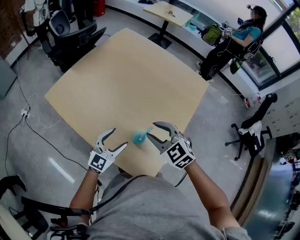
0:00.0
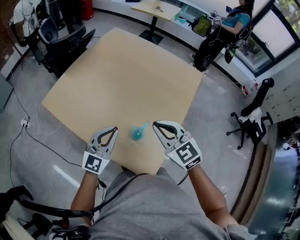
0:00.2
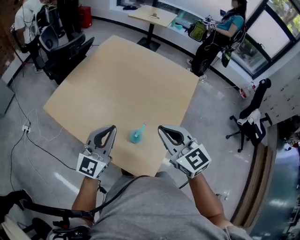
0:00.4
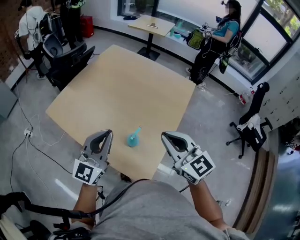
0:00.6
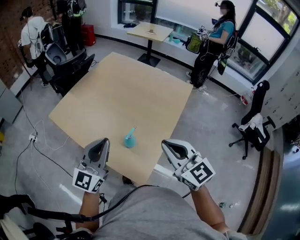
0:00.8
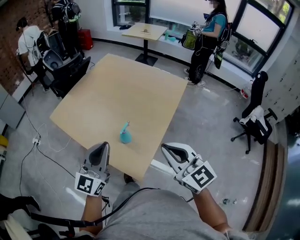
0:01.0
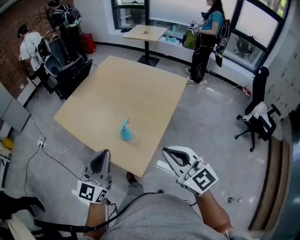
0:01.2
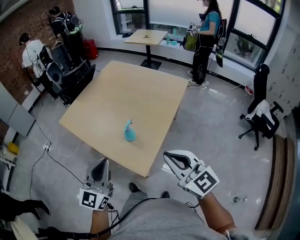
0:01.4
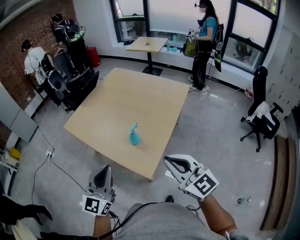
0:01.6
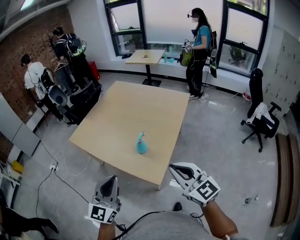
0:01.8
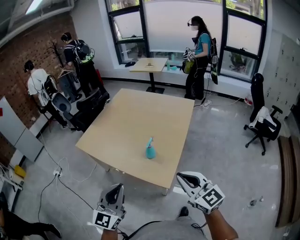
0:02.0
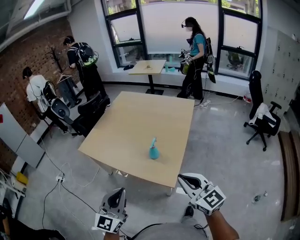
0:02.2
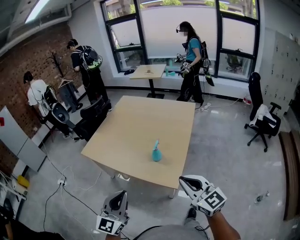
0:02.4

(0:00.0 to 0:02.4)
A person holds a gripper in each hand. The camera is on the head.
0:00.0 - 0:01.2: The right gripper heads backward, to the right and upward, covering approximately 35 cm, angles its fingers upward, by roughly 40 degrees, and closes. Meanwhile the left gripper heads backward, upward and to the right, covering approximately 35 cm, and closes up.
0:01.2 - 0:02.4: The left gripper shifts approximately 25 cm to the left and backward. Meanwhile the right gripper moves backward and to the left, some 20 cm.

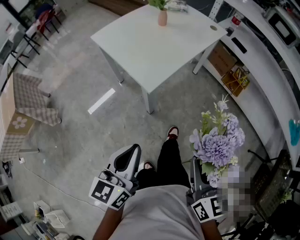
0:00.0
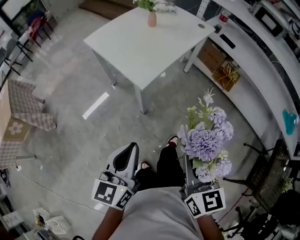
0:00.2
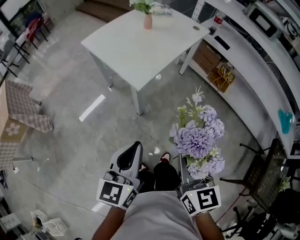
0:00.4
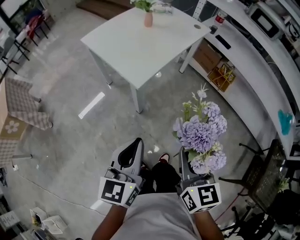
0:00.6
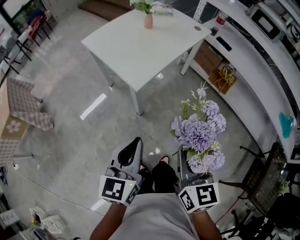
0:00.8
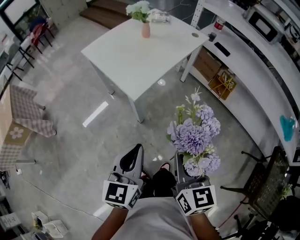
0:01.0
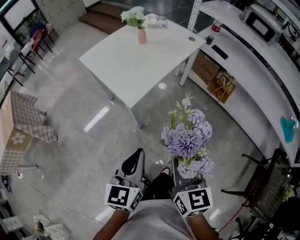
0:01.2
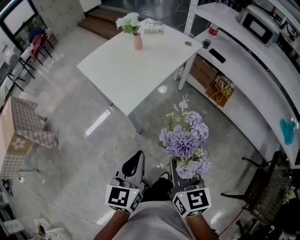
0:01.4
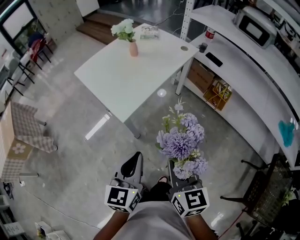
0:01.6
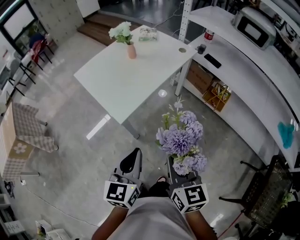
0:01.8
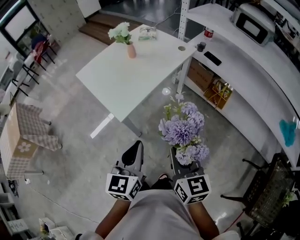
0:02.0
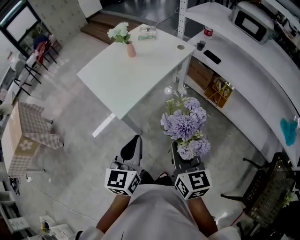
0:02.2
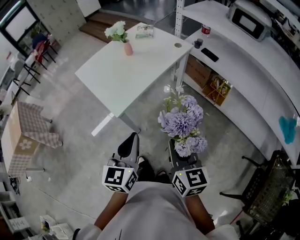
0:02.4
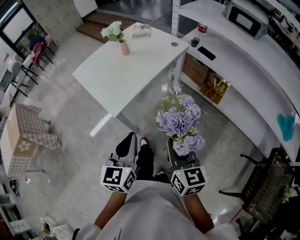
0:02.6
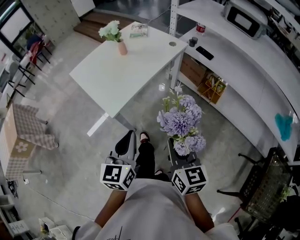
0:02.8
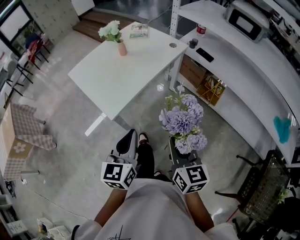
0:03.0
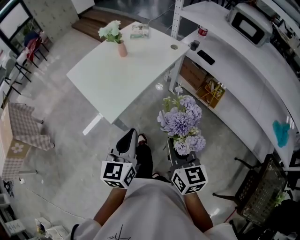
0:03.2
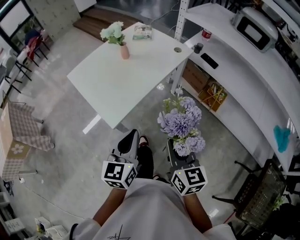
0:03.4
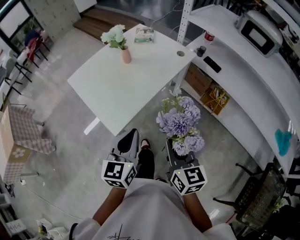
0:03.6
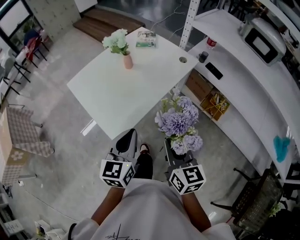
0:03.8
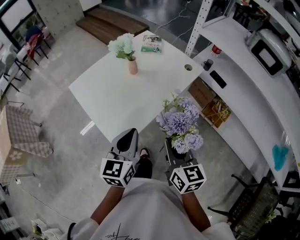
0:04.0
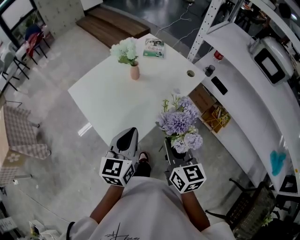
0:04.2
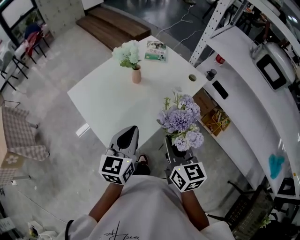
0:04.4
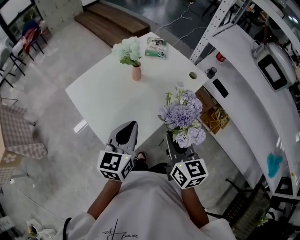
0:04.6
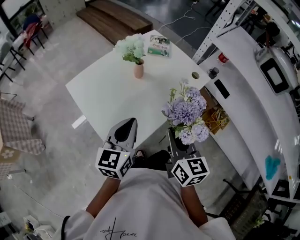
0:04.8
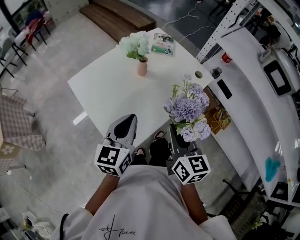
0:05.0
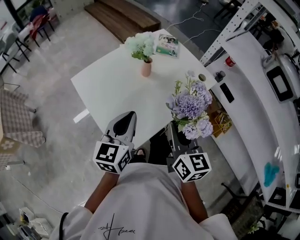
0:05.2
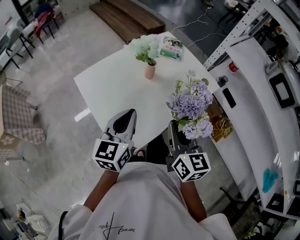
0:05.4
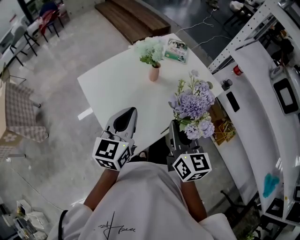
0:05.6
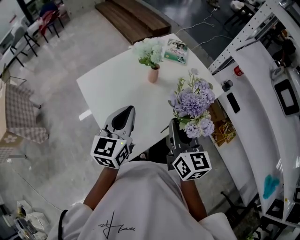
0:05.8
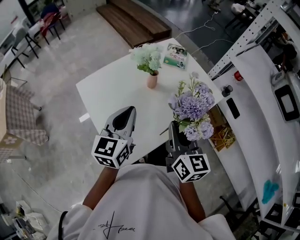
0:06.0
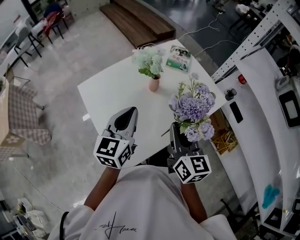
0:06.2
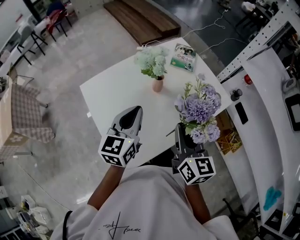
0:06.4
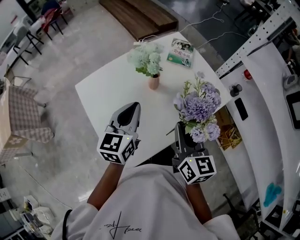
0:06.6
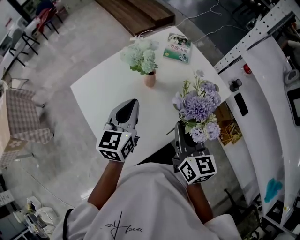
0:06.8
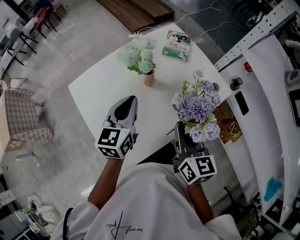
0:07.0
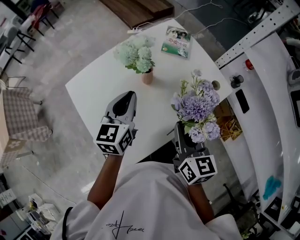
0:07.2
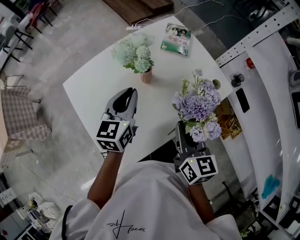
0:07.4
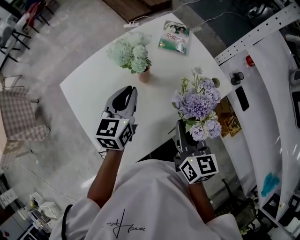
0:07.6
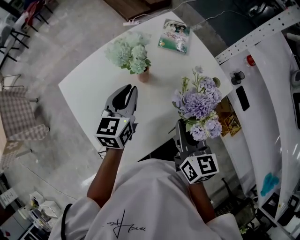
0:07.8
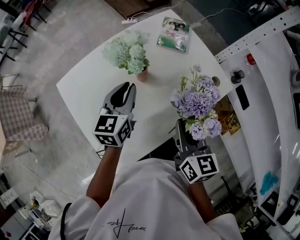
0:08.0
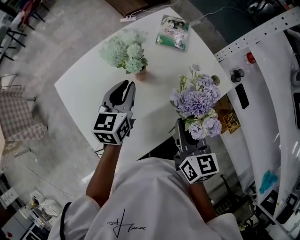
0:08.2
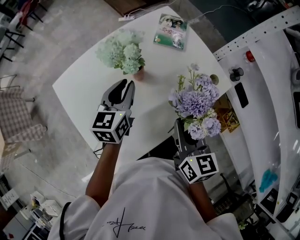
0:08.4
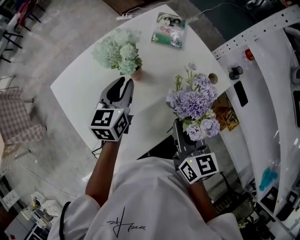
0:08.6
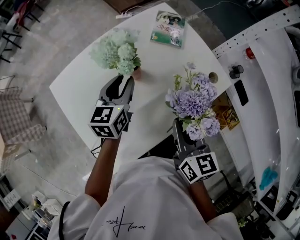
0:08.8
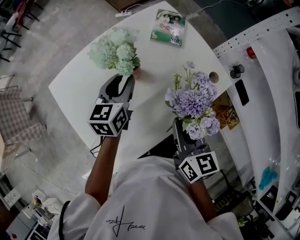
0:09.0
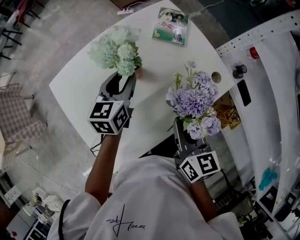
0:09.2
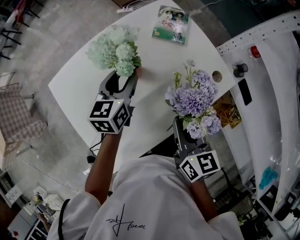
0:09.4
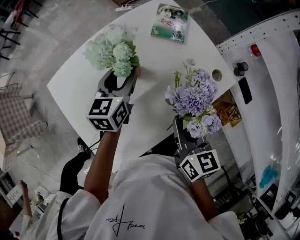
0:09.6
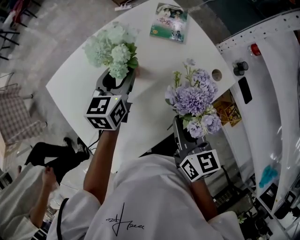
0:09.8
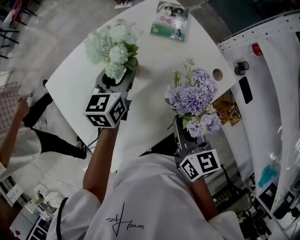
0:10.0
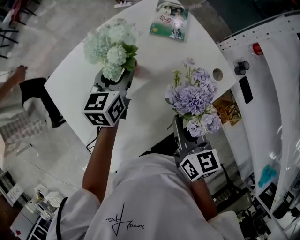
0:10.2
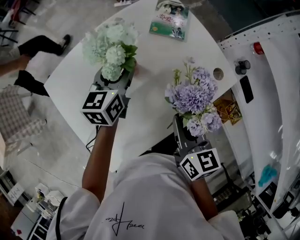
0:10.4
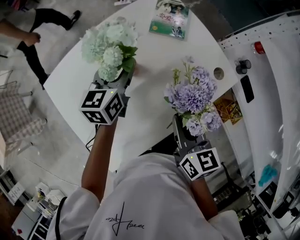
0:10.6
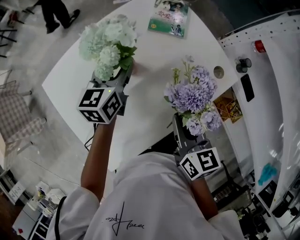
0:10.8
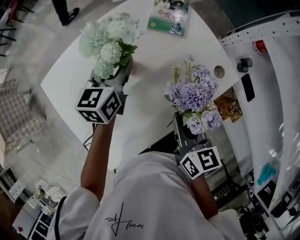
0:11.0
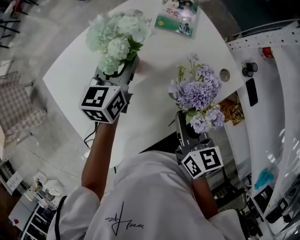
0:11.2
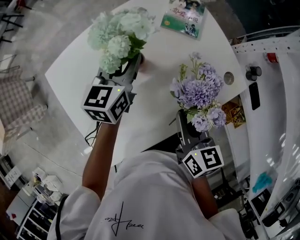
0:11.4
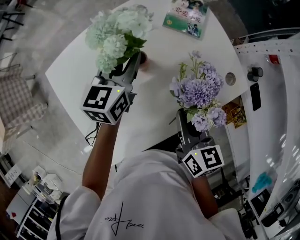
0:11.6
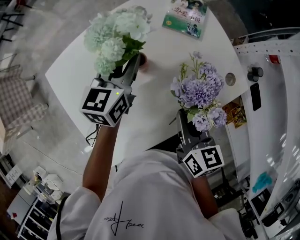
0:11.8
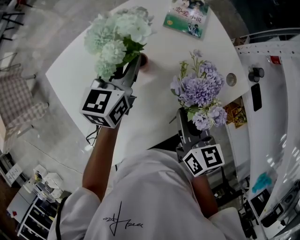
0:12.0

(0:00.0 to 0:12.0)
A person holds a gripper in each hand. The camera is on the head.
0:00.0 - 0:01.6: The left gripper heads to the right and forward, covering some 15 cm; the right gripper moves forward and to the right, about 10 cm.
0:01.6 - 0:03.0: Both grippers move to the right and forward, some 10 cm.
0:03.0 - 0:04.4: Both grippers move forward, about 25 cm.
0:04.4 - 0:06.0: The right gripper is displaced forward by roughly 10 cm, while the left gripper shifts about 15 cm forward and to the left.
0:06.0 - 0:07.6: The right gripper goes about 10 cm forward, downward and to the right, while the left gripper is displaced forward and downward by roughly 15 cm.
0:07.6 - 0:09.0: The left gripper moves forward, approximately 5 cm, and opens its fingers.
0:09.0 - 0:10.4: The grippers make only small movements.
0:10.4 - 0:12.0: The left gripper closes up.

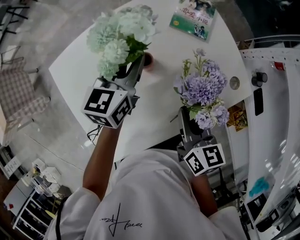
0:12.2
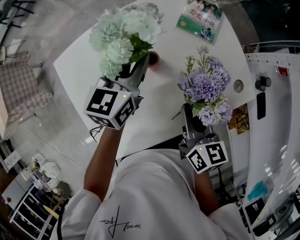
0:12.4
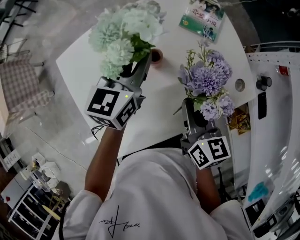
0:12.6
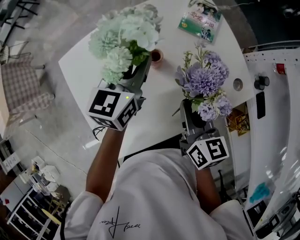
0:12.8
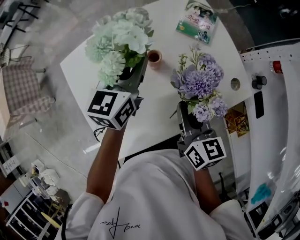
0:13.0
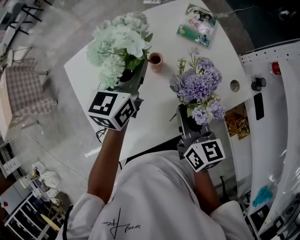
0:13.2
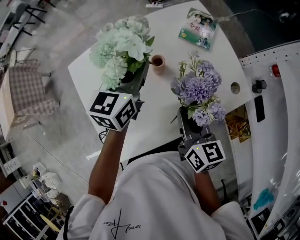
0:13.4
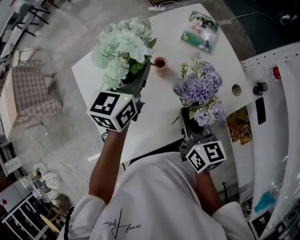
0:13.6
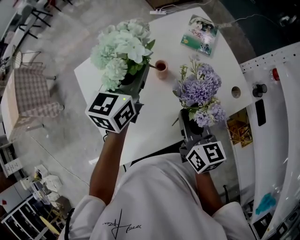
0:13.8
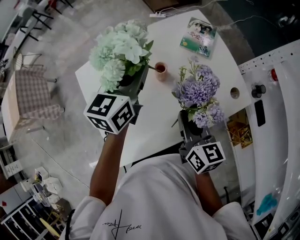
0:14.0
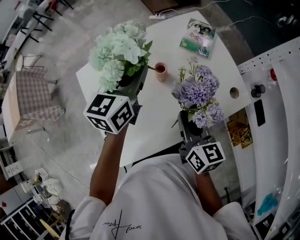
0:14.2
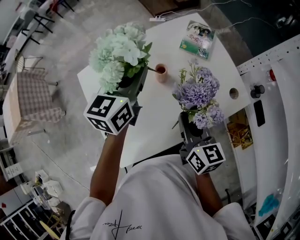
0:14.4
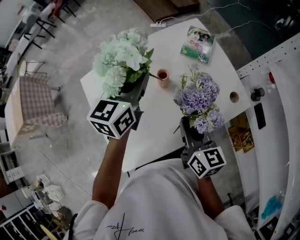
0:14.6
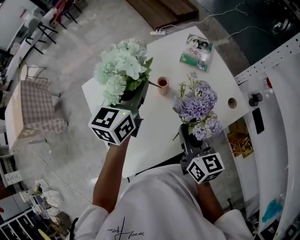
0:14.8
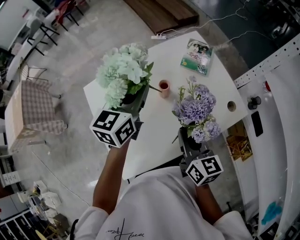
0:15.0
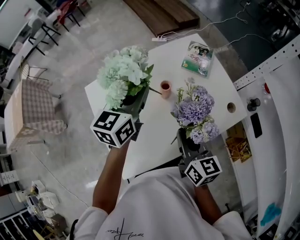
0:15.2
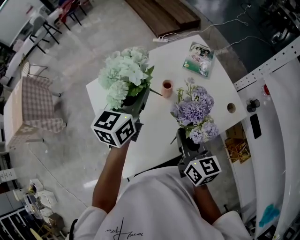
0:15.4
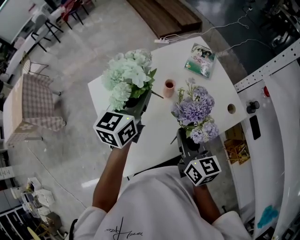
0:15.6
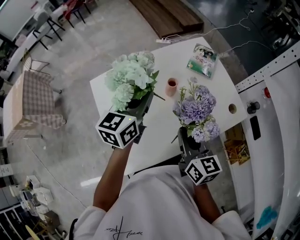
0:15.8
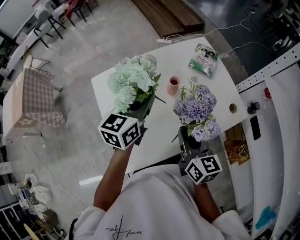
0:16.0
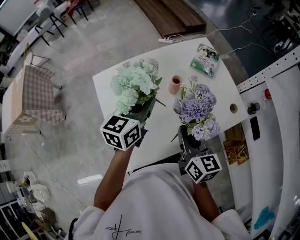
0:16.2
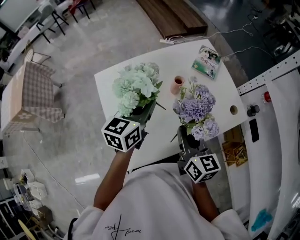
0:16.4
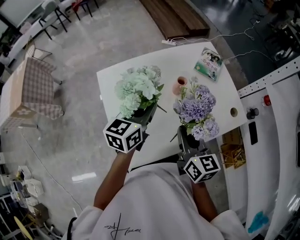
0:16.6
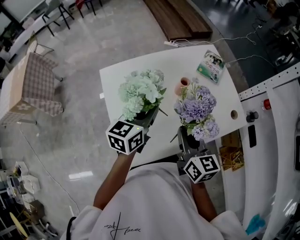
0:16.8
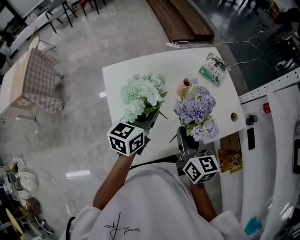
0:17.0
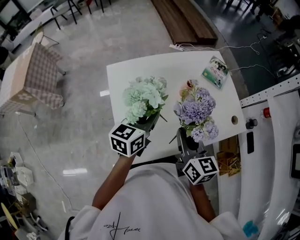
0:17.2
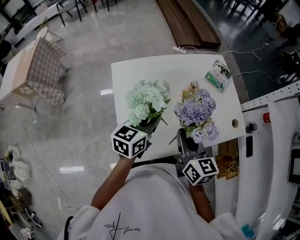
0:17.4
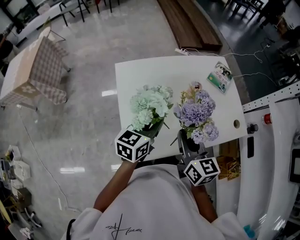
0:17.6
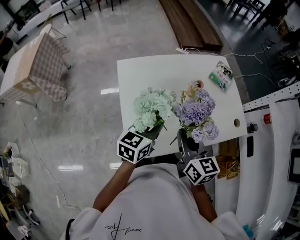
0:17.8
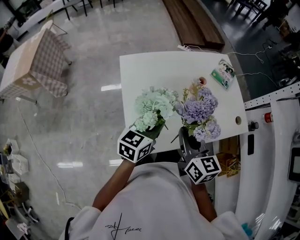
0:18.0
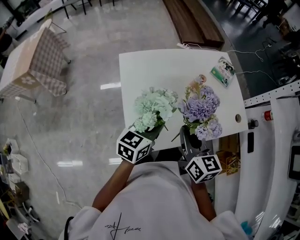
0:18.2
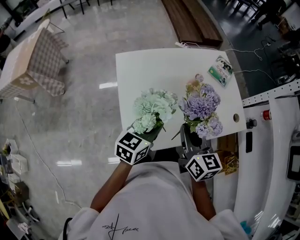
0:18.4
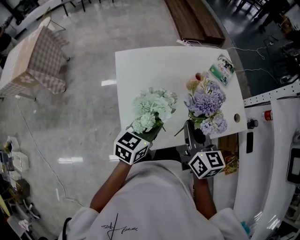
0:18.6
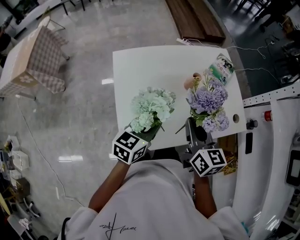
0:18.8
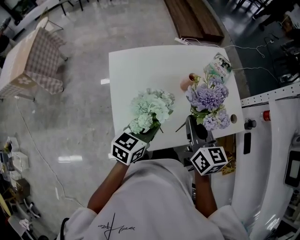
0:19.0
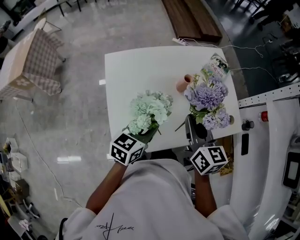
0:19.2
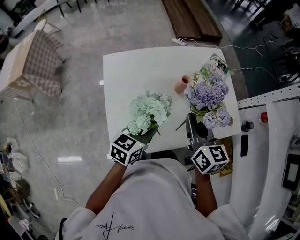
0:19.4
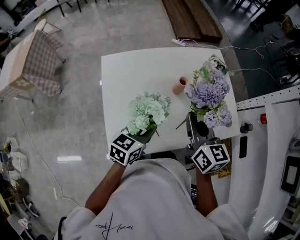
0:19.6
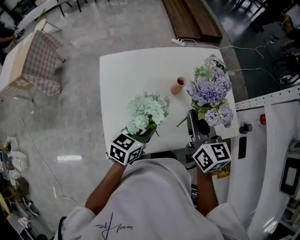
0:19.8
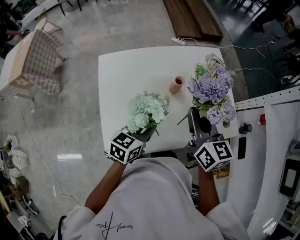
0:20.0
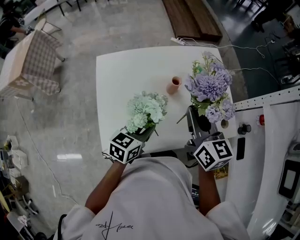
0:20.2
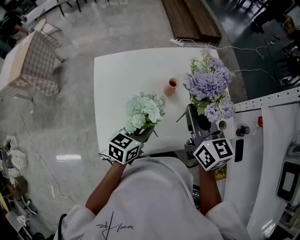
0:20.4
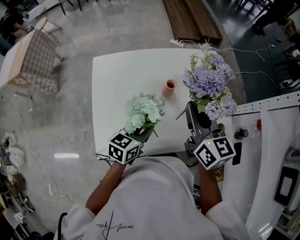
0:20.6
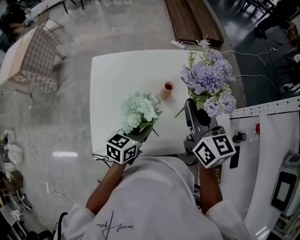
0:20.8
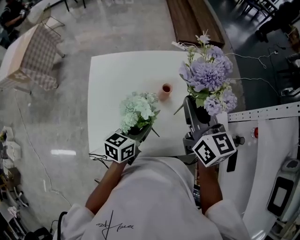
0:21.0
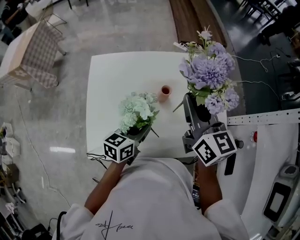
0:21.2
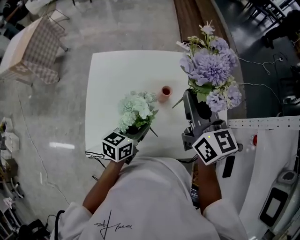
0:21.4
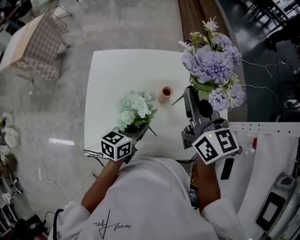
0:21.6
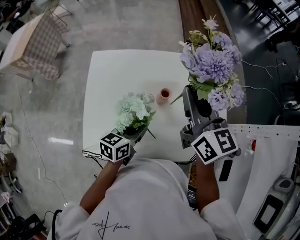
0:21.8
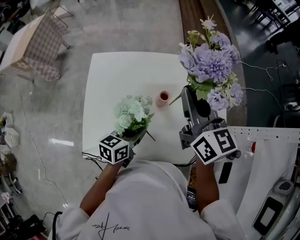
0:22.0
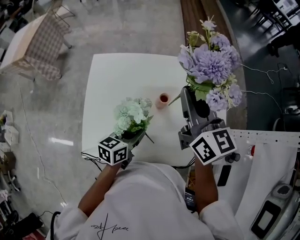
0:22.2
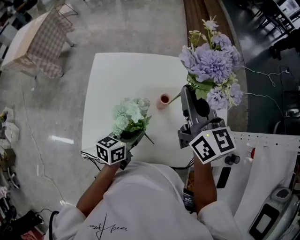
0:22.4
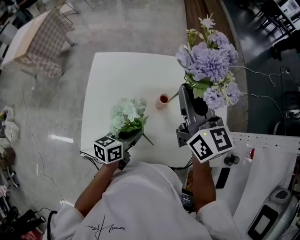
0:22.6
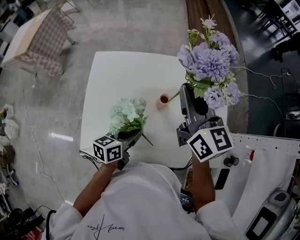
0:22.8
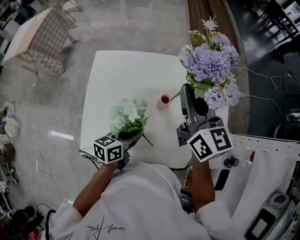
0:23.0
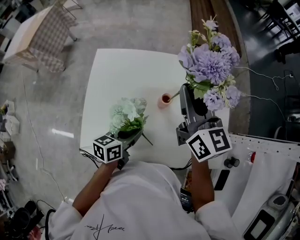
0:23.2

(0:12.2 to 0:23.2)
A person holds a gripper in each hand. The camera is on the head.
0:12.2 - 0:13.8: The left gripper heads upward, covering approximately 10 cm. The right gripper moves approximately 5 cm.
0:13.8 - 0:15.4: The left gripper changes place by about 5 cm.
0:15.4 - 0:17.0: The left gripper heads backward and downward, covering about 10 cm; the right gripper shifts some 5 cm to the left.
0:17.0 - 0:18.4: The left gripper travels backward by approximately 10 cm. The right gripper moves about 5 cm.
0:18.4 - 0:20.0: The left gripper shifts roughly 10 cm to the right and forward. Meanwhile the right gripper is displaced forward and to the right by some 15 cm.
0:20.0 - 0:21.6: The right gripper is displaced forward and upward by roughly 15 cm; the left gripper heads forward, covering some 5 cm.
0:21.6 - 0:23.2: The grippers make only small movements.
